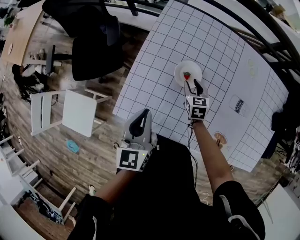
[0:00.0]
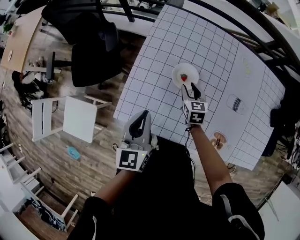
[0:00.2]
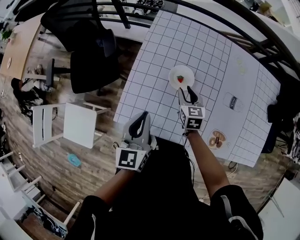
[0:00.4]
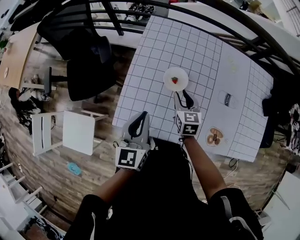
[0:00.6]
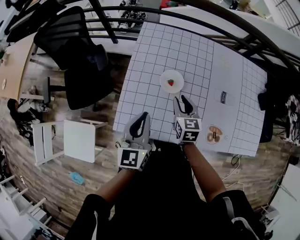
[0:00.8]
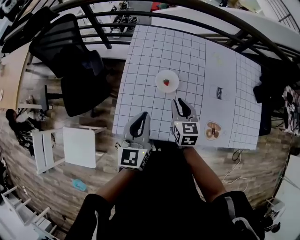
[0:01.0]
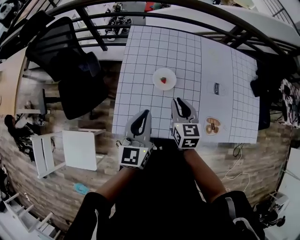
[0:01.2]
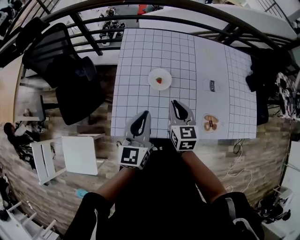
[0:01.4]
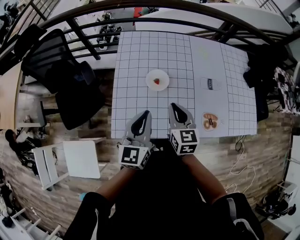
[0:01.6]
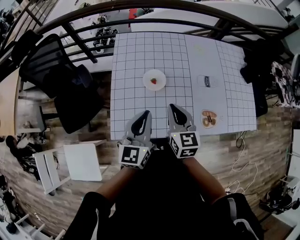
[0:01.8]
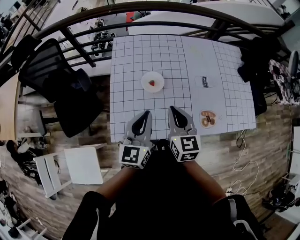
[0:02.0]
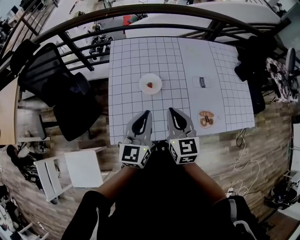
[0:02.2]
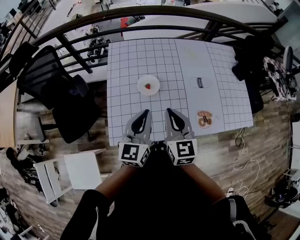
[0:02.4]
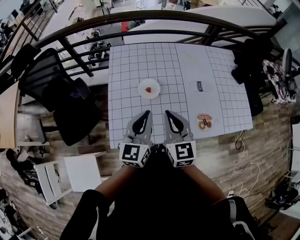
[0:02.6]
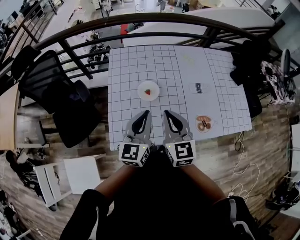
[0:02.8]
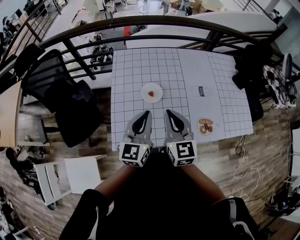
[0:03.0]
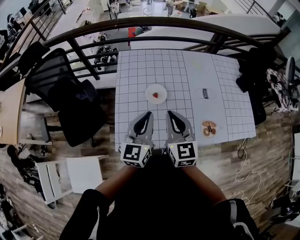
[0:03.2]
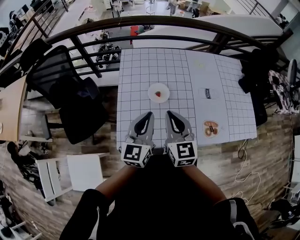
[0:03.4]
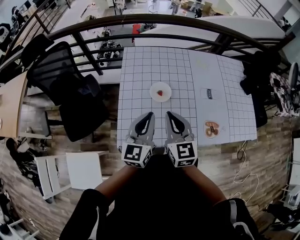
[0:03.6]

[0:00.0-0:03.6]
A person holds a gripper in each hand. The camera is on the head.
0:00.0 to 0:01.8: The right gripper shifts roughly 30 cm upward and backward, changes its angle by roughly 30 degrees, and closes; the left gripper goes some 10 cm upward and to the right, and turns by approximately 30 degrees.
0:01.8 to 0:03.6: The right gripper heads to the left, covering some 5 cm.

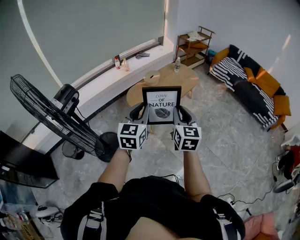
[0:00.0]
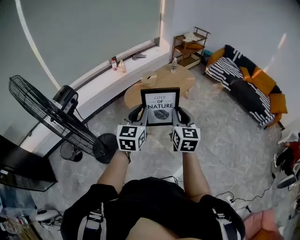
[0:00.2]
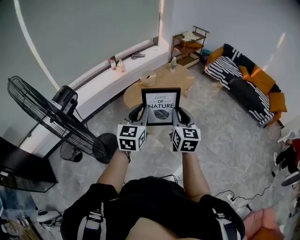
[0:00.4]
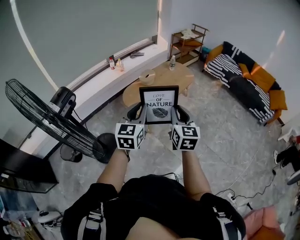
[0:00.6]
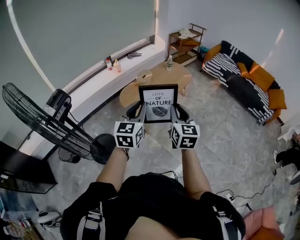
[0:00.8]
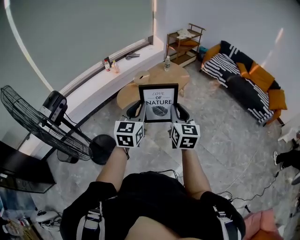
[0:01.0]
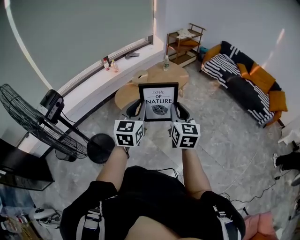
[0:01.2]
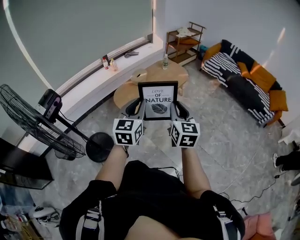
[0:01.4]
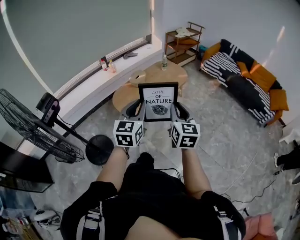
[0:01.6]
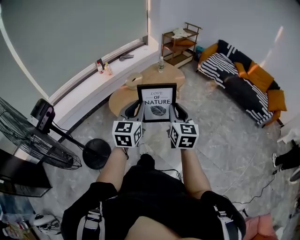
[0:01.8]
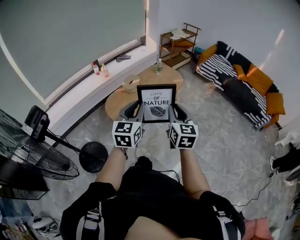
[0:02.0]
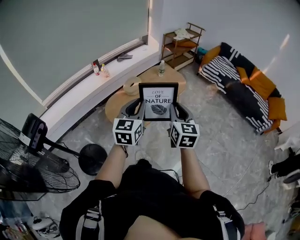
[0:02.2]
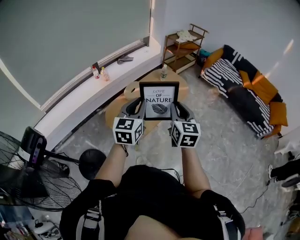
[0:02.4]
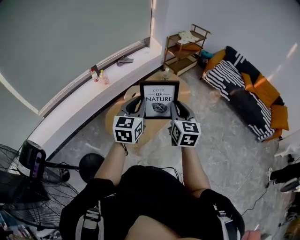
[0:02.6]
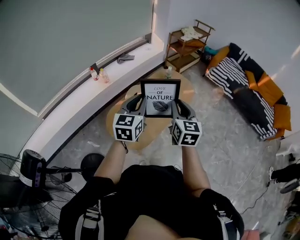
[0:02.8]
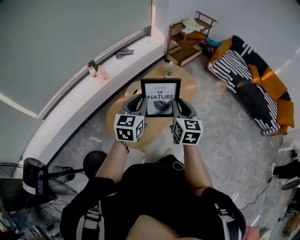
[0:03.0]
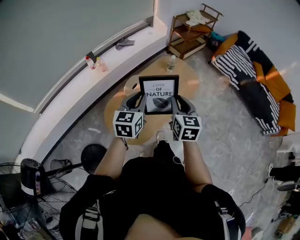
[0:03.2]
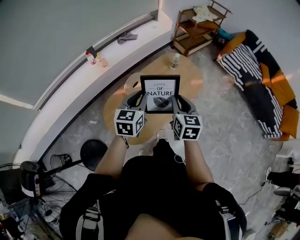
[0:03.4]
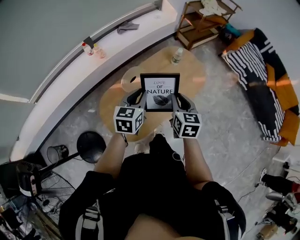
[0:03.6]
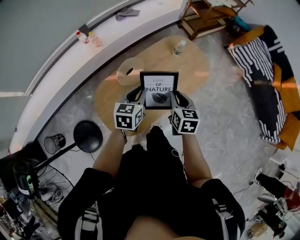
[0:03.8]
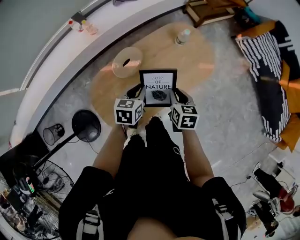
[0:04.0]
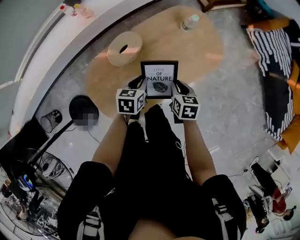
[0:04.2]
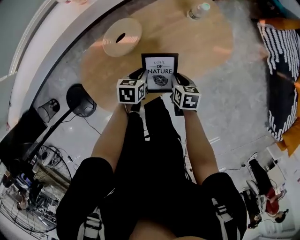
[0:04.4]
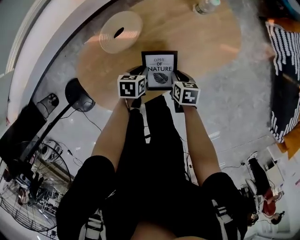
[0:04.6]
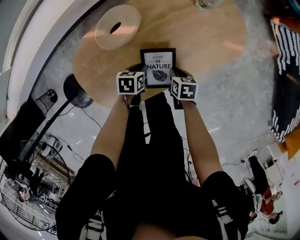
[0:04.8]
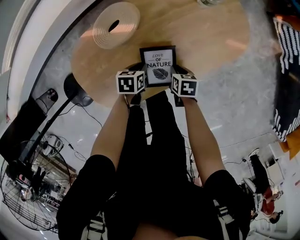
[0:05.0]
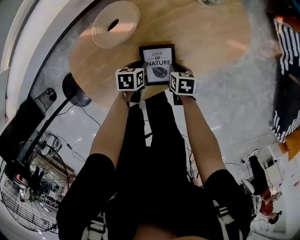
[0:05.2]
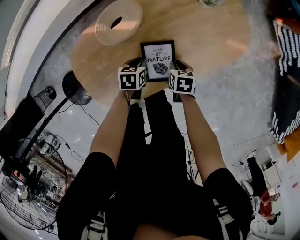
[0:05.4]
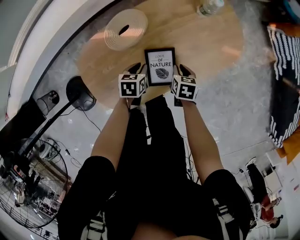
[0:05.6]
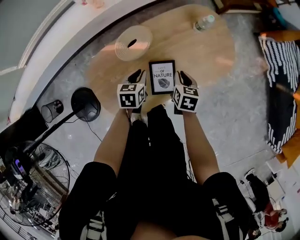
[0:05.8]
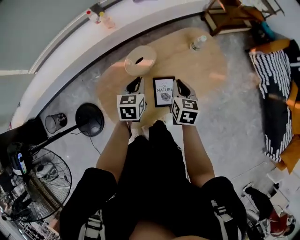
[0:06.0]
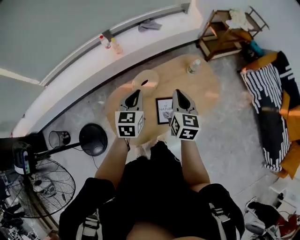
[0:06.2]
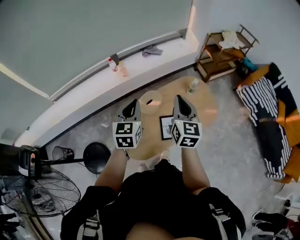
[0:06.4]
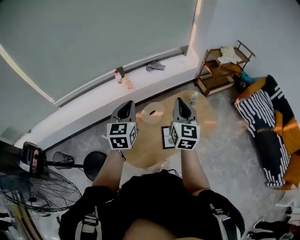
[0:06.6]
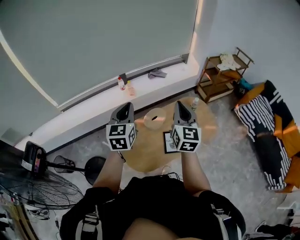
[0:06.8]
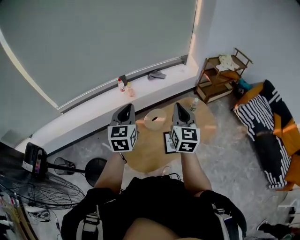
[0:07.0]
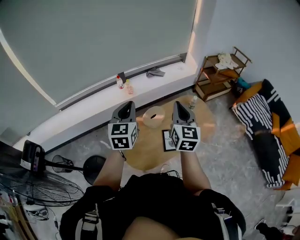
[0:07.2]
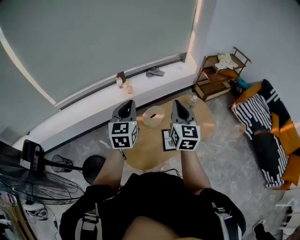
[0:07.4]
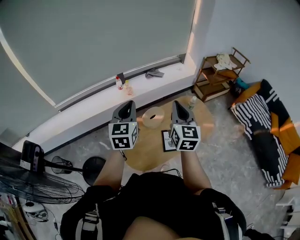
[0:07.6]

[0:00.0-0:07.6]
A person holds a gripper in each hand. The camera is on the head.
0:00.0 to 0:01.6: Both grippers travel together to the right and forward, roughly 15 cm.
0:01.6 to 0:03.0: Both grippers are carried forward, about 50 cm.
0:03.0 to 0:04.6: Both grippers move downward and forward, approximately 70 cm. The right gripper angles its fingers downward, by some 50 degrees; the left gripper angles its fingers downward, by approximately 50 degrees.
0:04.6 to 0:06.0: Both grippers move upward, about 30 cm. The right gripper swivels roughly 30 degrees. The left gripper rotates roughly 30 degrees.
0:06.0 to 0:07.6: The two grippers go approximately 40 cm upward and backward. The right gripper tips its fingers upward by approximately 40 degrees. The left gripper tips its fingers upward by some 30 degrees.

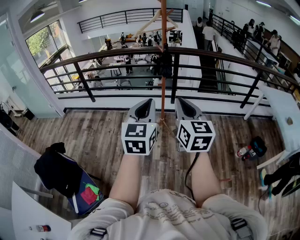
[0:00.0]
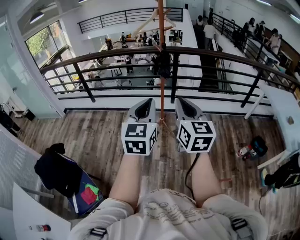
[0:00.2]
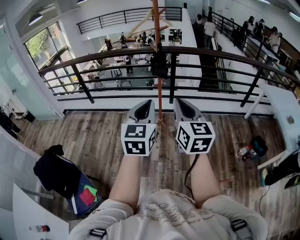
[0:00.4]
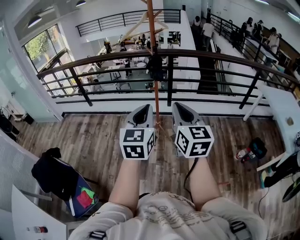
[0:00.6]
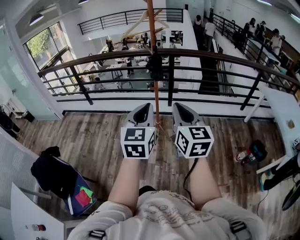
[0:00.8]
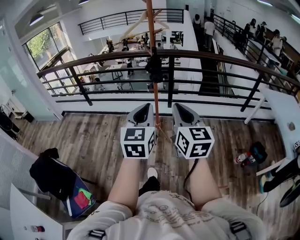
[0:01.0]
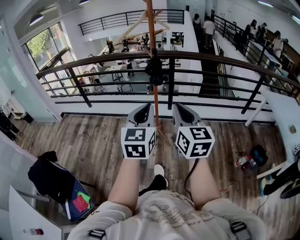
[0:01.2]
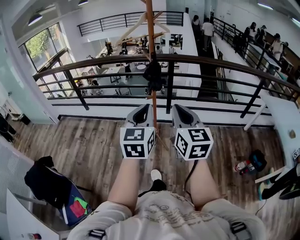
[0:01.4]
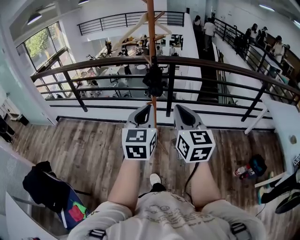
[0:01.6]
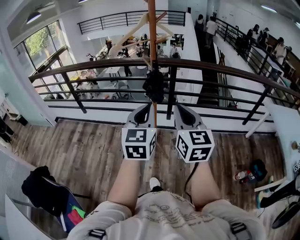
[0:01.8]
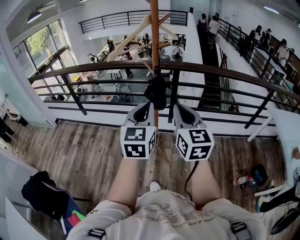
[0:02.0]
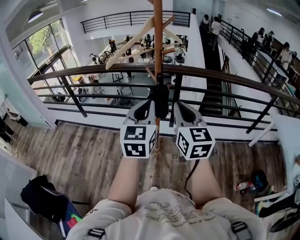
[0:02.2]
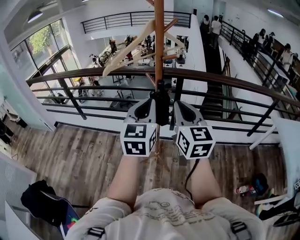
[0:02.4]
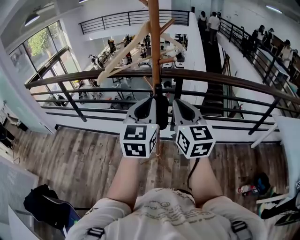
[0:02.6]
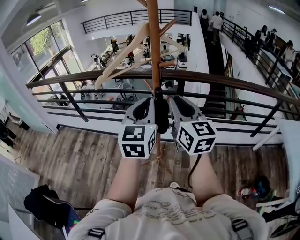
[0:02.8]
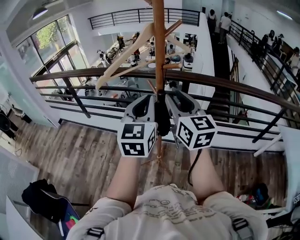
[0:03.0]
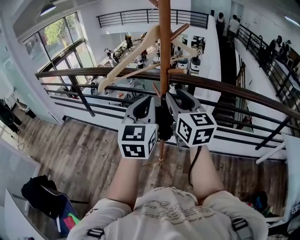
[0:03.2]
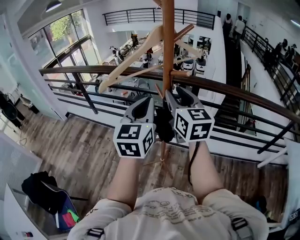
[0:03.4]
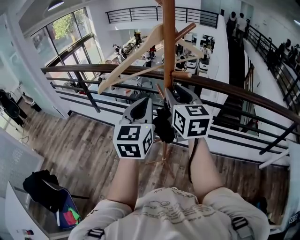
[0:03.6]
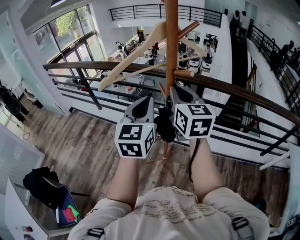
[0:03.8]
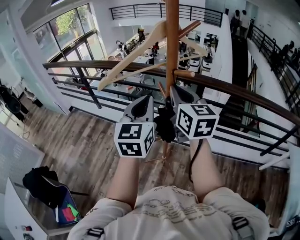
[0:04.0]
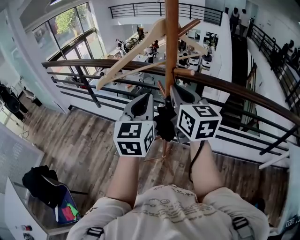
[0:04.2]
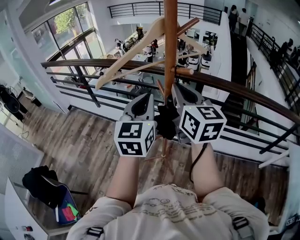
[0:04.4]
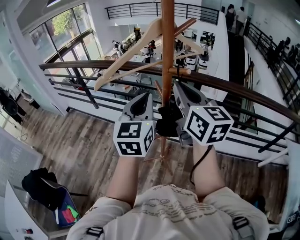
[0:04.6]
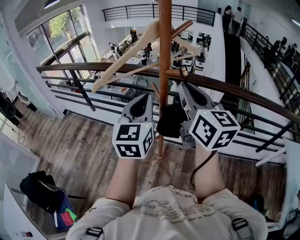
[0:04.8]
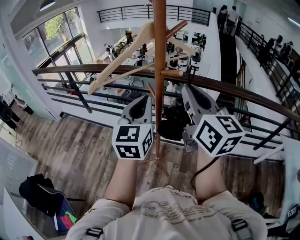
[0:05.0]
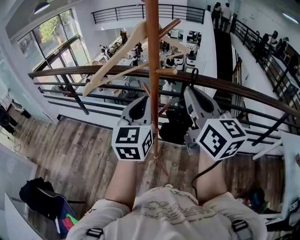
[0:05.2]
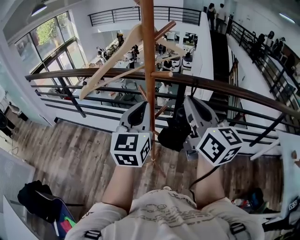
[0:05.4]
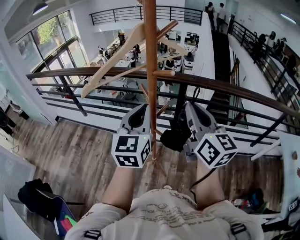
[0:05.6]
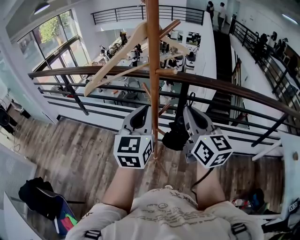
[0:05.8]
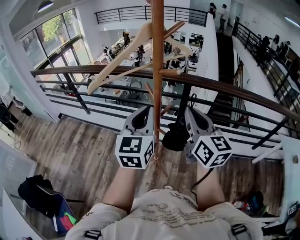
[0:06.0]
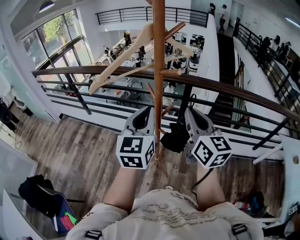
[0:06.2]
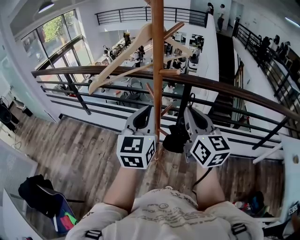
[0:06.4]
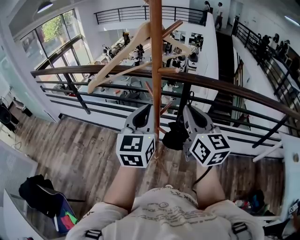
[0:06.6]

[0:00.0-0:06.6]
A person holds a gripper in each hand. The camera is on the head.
0:00.0 to 0:01.6: The two grippers go about 25 cm forward and to the right.
0:01.6 to 0:03.2: Both grippers travel together forward, roughly 35 cm. The right gripper opens its fingers.
0:03.2 to 0:05.0: The right gripper goes about 5 cm upward, and closes up.
0:05.0 to 0:06.6: The right gripper goes roughly 10 cm downward.

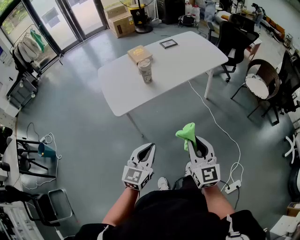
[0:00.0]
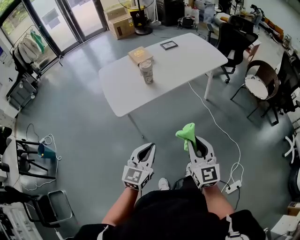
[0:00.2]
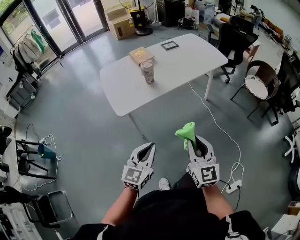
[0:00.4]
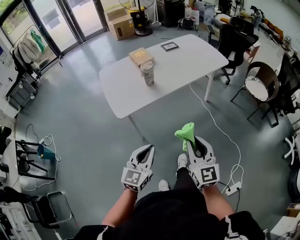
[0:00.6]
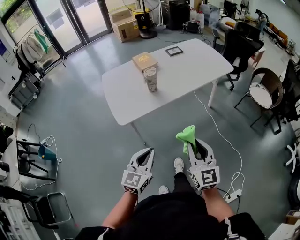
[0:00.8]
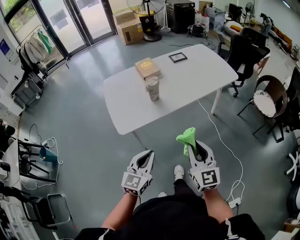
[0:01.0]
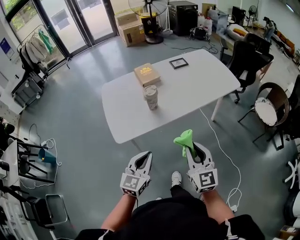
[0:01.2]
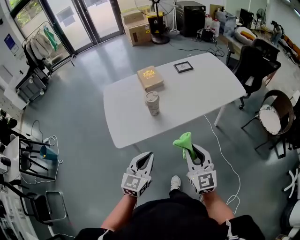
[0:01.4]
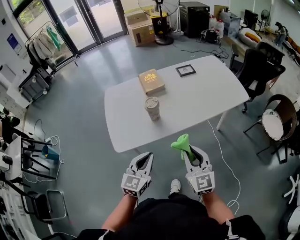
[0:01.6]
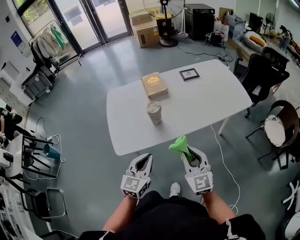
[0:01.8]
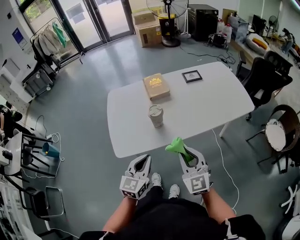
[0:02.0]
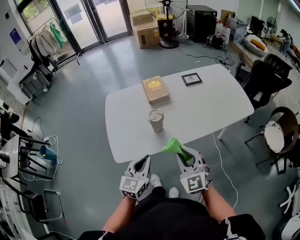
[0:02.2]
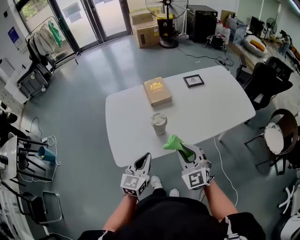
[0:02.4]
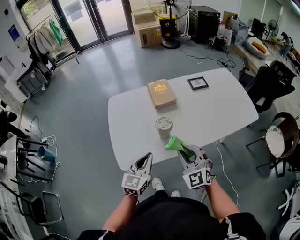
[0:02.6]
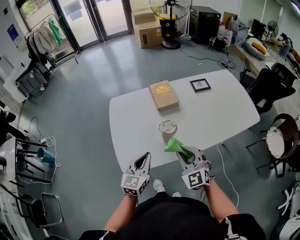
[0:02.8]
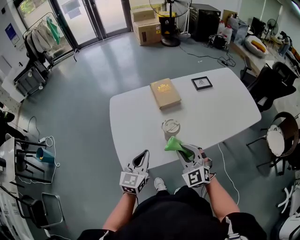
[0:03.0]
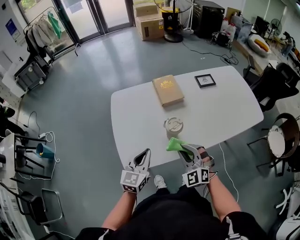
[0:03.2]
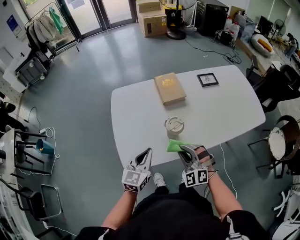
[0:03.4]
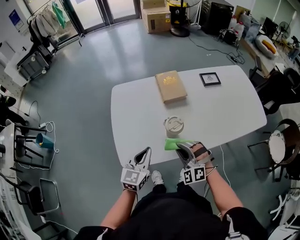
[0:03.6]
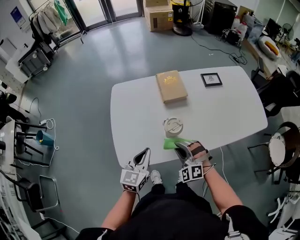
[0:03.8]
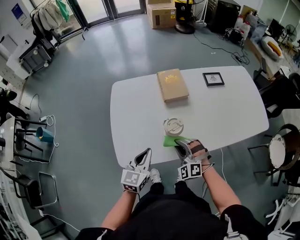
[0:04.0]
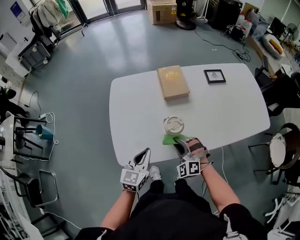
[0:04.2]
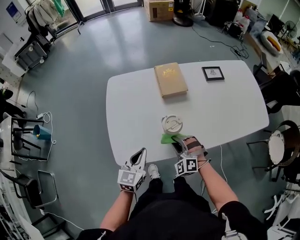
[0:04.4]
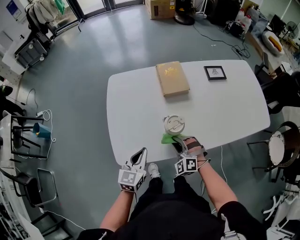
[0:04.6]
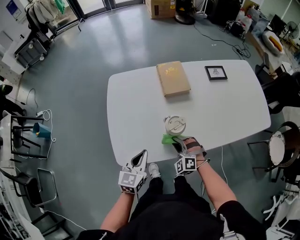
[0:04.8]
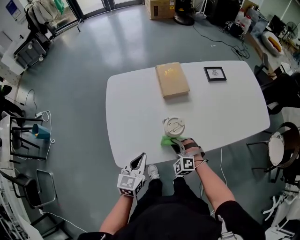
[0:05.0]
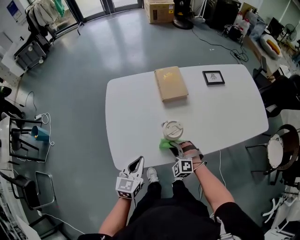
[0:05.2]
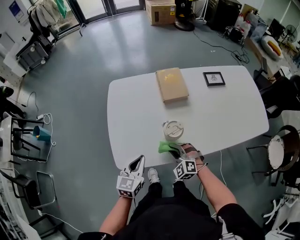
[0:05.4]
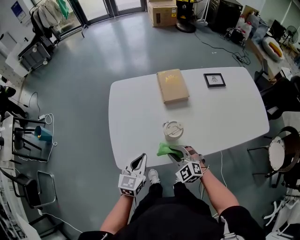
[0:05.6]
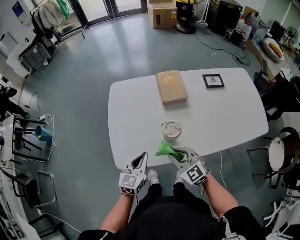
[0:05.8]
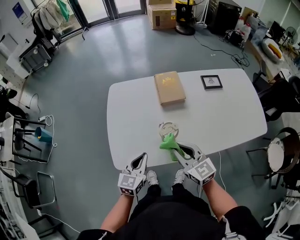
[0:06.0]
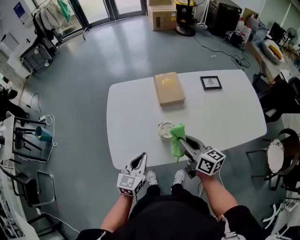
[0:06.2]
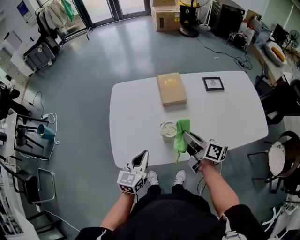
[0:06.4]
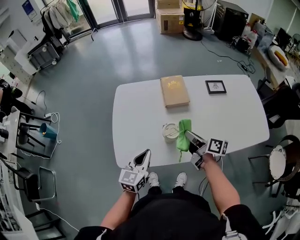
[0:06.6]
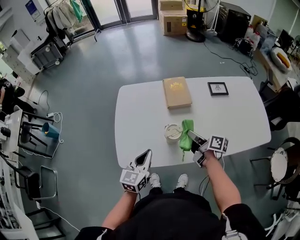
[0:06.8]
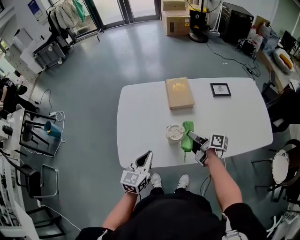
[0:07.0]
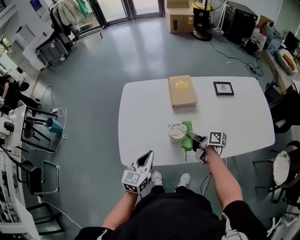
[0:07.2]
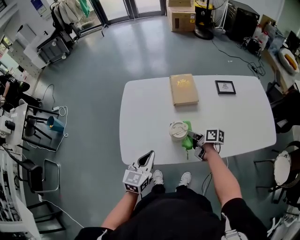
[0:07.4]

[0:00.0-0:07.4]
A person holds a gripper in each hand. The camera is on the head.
0:00.0 to 0:01.4: Both grippers move forward, roughly 20 cm.
0:01.4 to 0:03.0: The grippers both shift forward and to the left by some 25 cm. The right gripper rotates approximately 40 degrees.
0:03.0 to 0:04.4: The right gripper goes some 15 cm downward, and changes its angle by approximately 30 degrees. Meanwhile the left gripper is displaced downward by roughly 5 cm.
0:04.4 to 0:06.0: The right gripper is displaced upward by some 15 cm, and rotates around the line of its fingers by roughly 60 degrees, clockwise from behind.
0:06.0 to 0:07.4: The right gripper shifts about 20 cm downward, forward and to the right, and twists approximately 60 degrees clockwise, seen from behind.
